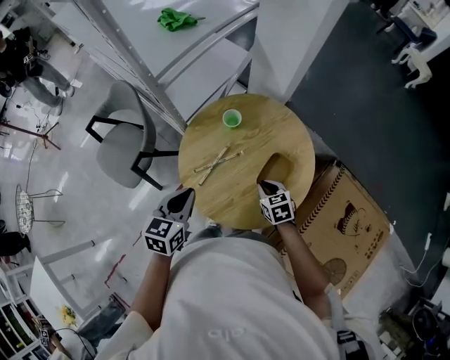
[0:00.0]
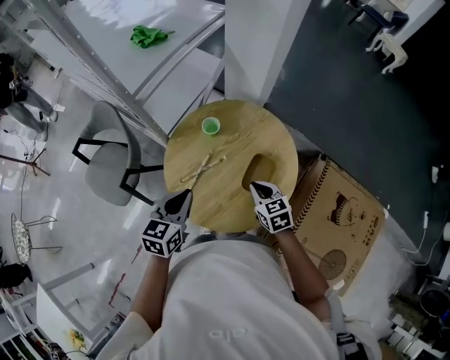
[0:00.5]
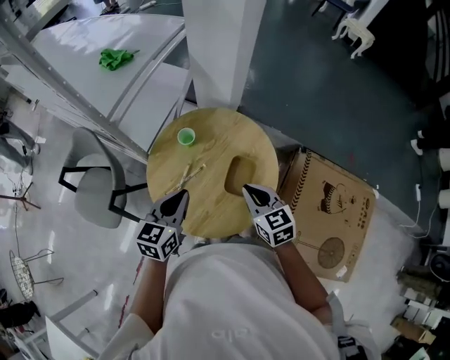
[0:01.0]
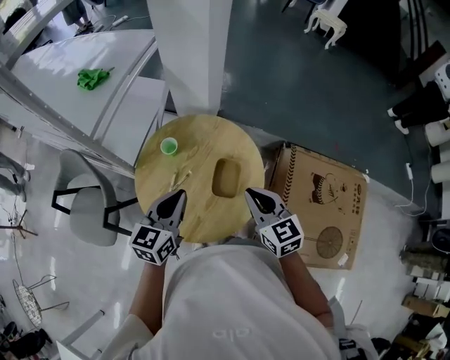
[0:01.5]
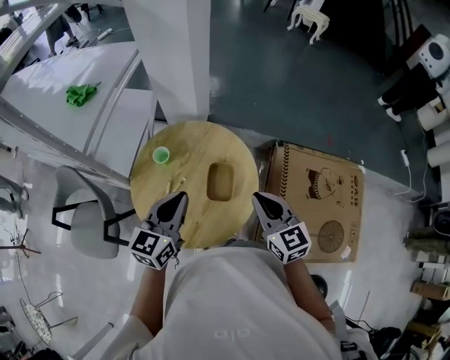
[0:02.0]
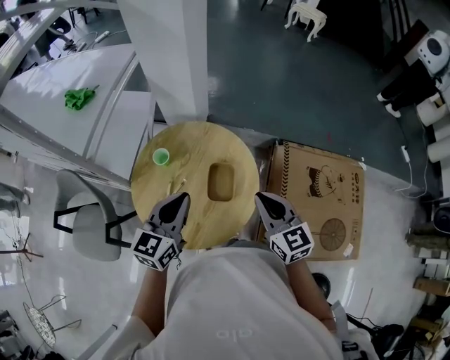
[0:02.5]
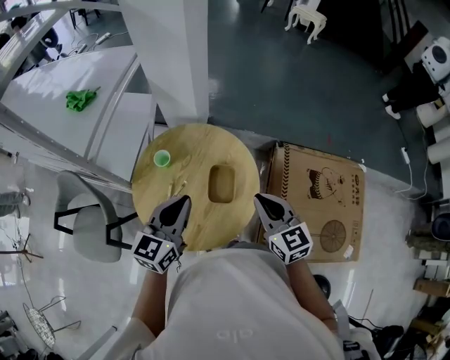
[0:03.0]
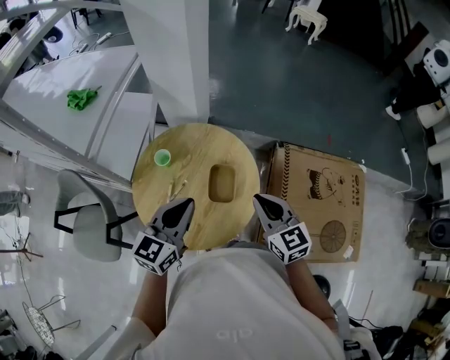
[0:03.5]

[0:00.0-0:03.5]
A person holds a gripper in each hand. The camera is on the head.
0:00.0 to 0:02.0: The left gripper changes place by roughly 20 cm, and rotates roughly 30 degrees; the right gripper travels upward by some 25 cm, and points its fingers approximately 30 degrees further upward.
0:02.0 to 0:03.5: There are only small adjustments of the grippers.

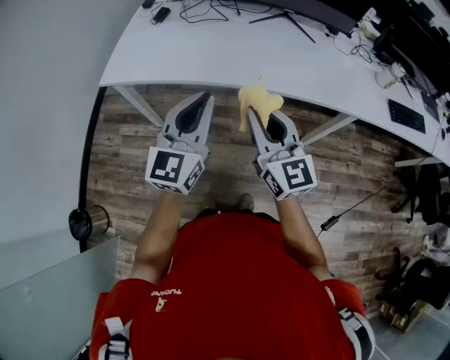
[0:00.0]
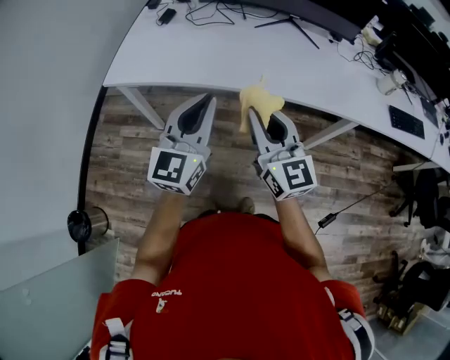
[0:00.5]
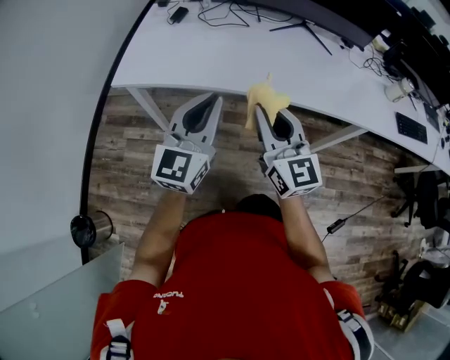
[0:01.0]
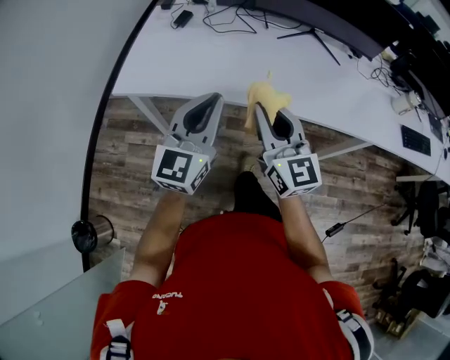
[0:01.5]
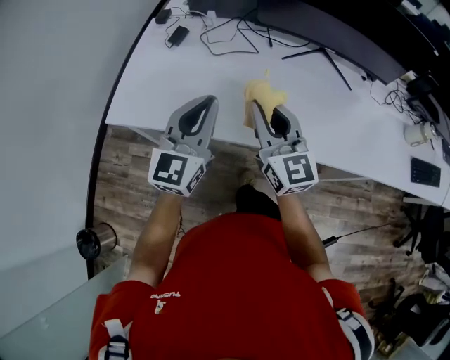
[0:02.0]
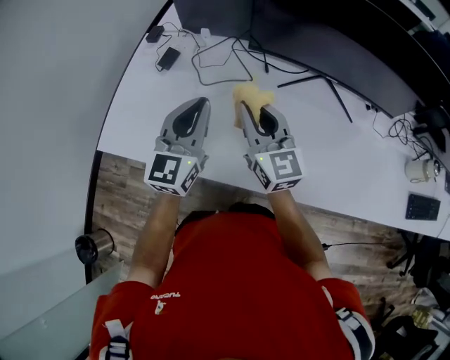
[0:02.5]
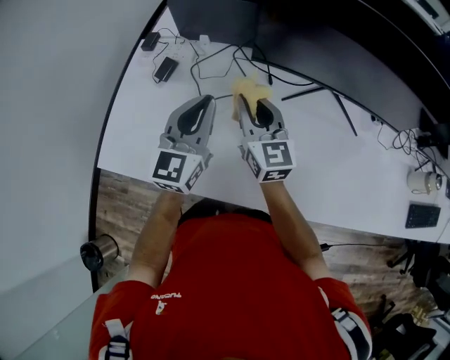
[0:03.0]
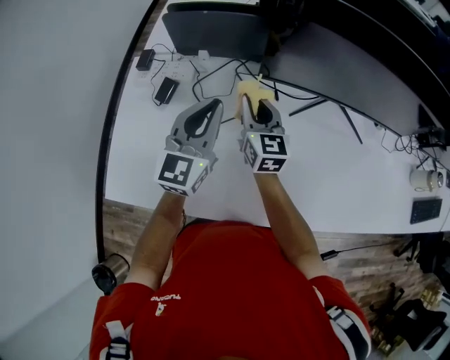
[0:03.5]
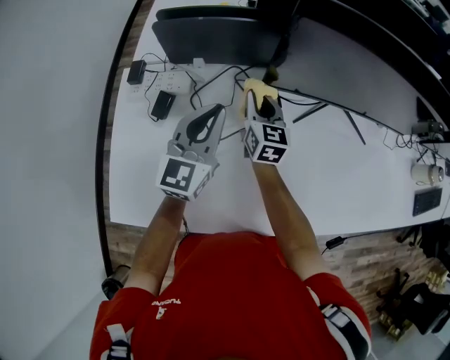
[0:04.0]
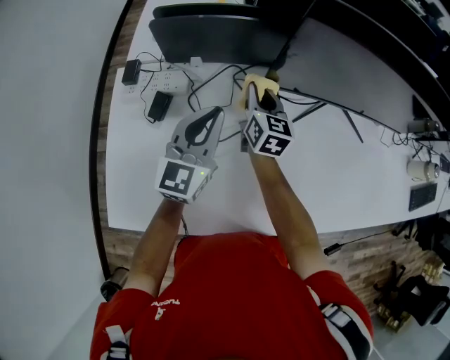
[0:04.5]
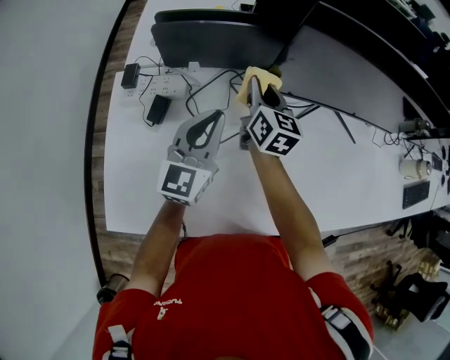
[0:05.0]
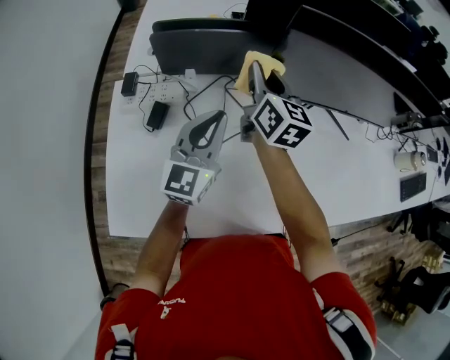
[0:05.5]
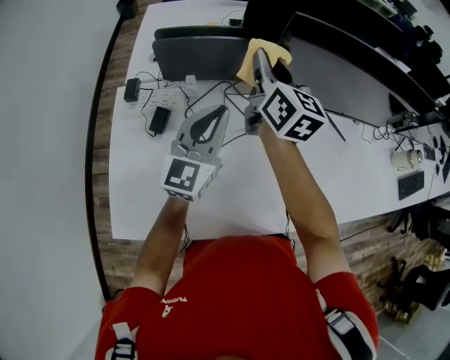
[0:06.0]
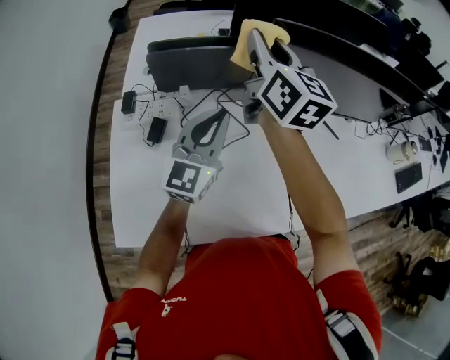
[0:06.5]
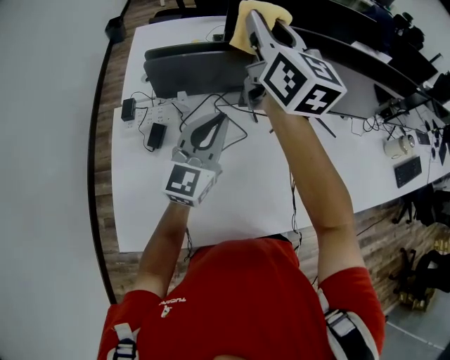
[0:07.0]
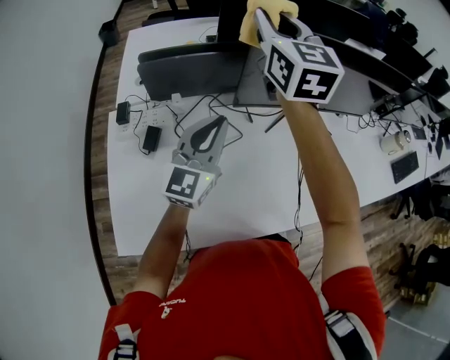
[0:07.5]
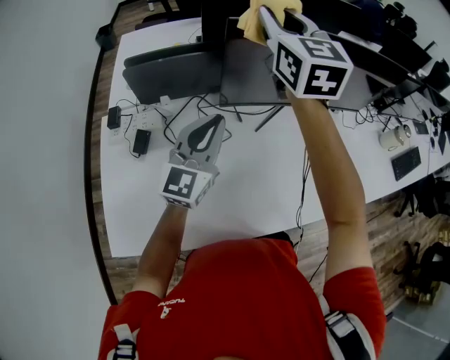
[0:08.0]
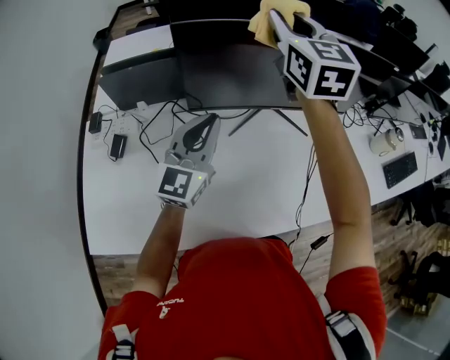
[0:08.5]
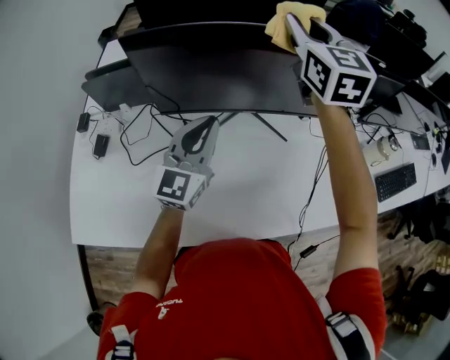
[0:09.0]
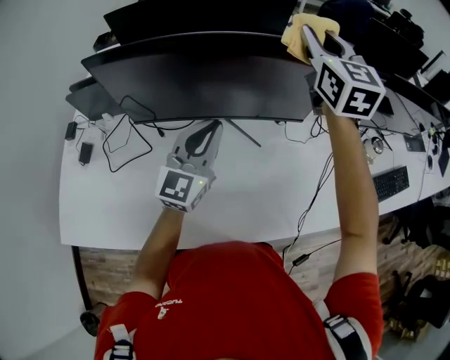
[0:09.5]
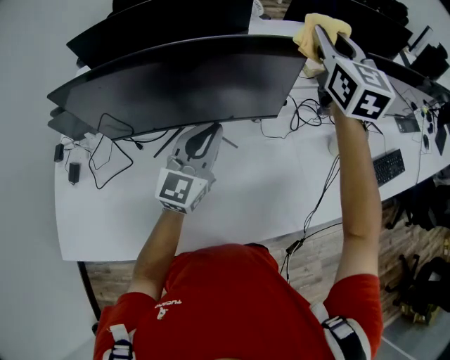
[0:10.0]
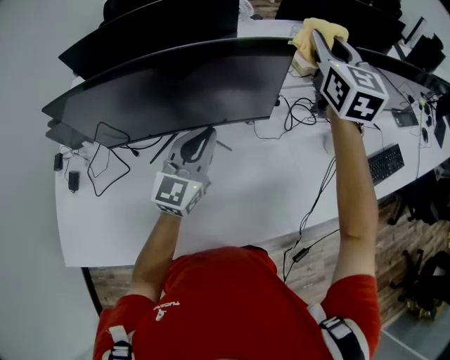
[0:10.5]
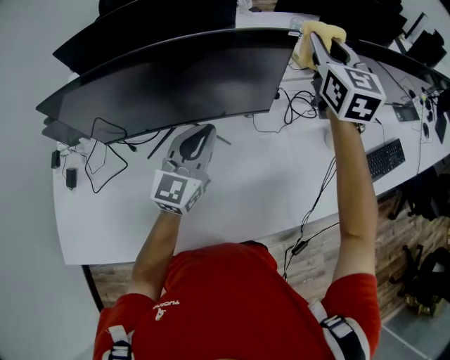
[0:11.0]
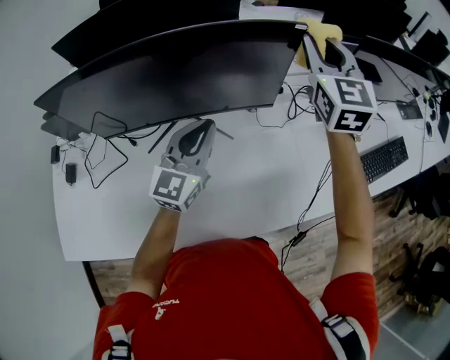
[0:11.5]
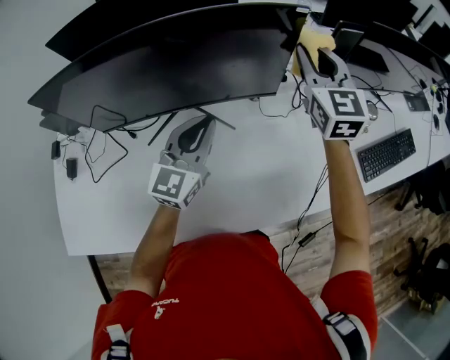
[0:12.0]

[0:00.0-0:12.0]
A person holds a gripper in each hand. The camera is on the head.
0:00.0 to 0:02.0: Both grippers travel together forward, roughly 25 cm.
0:02.0 to 0:04.0: The grippers both shift forward by about 35 cm. The right gripper changes its angle by some 30 degrees.
0:04.0 to 0:06.0: The right gripper goes about 20 cm upward. Meanwhile the left gripper is displaced upward by roughly 5 cm.
0:06.0 to 0:08.0: The right gripper moves upward and to the right, about 20 cm, and changes its angle by about 30 degrees. The left gripper moves to the right, some 10 cm.
0:08.0 to 0:10.0: The pair of grippers is taken to the right, some 50 cm.
0:10.0 to 0:12.0: The right gripper is displaced downward by approximately 15 cm.

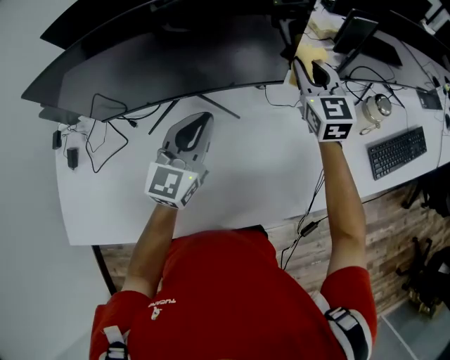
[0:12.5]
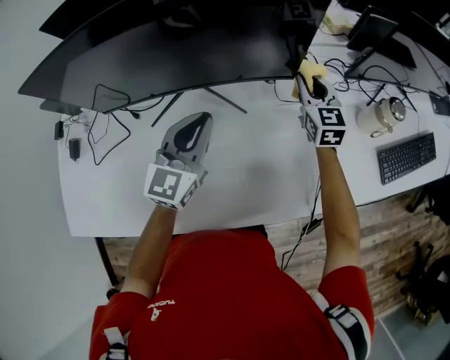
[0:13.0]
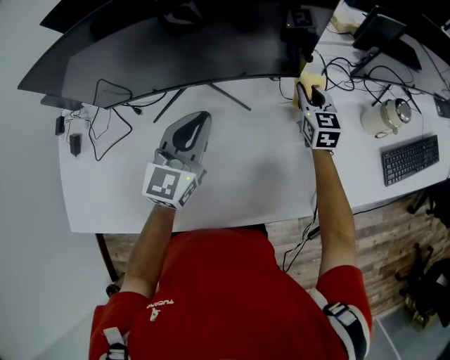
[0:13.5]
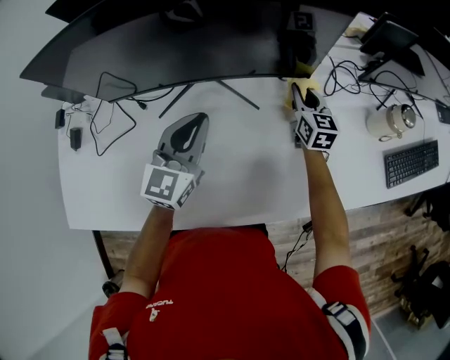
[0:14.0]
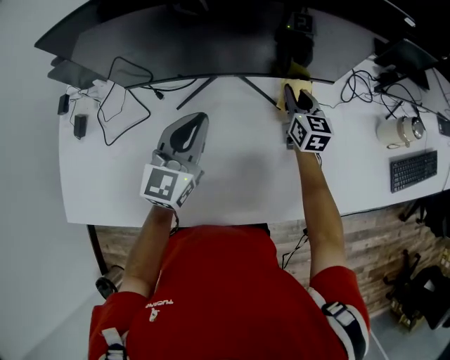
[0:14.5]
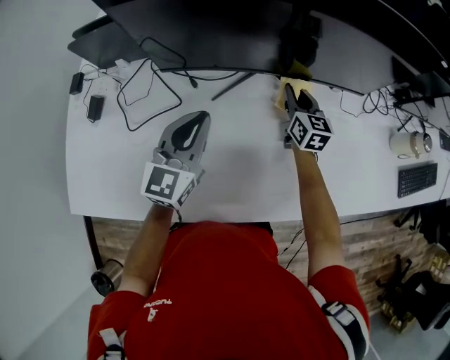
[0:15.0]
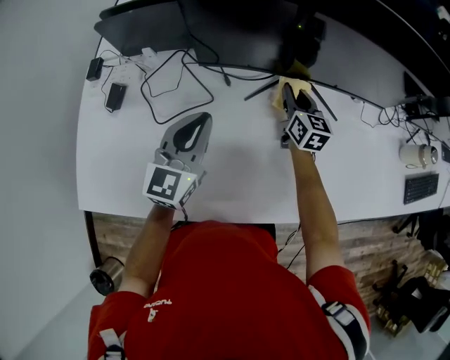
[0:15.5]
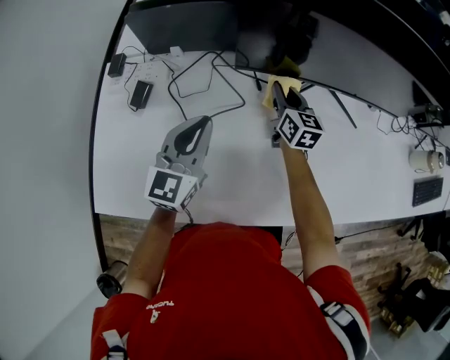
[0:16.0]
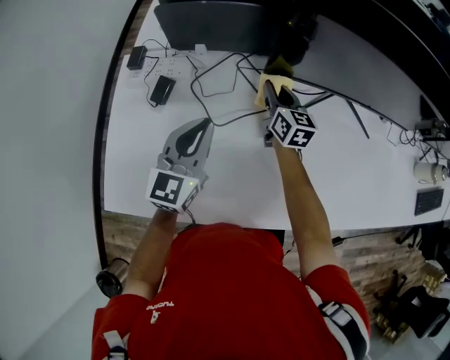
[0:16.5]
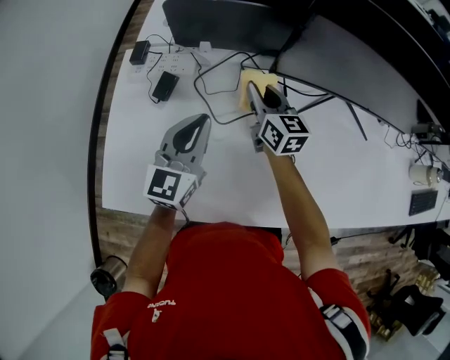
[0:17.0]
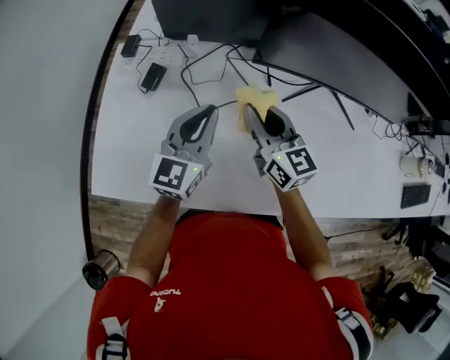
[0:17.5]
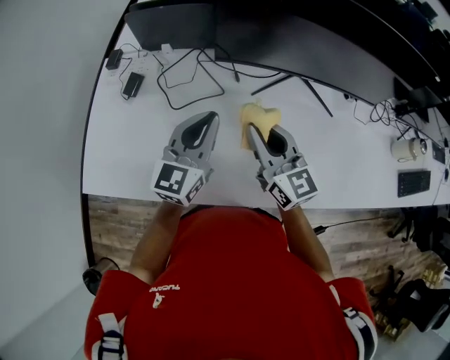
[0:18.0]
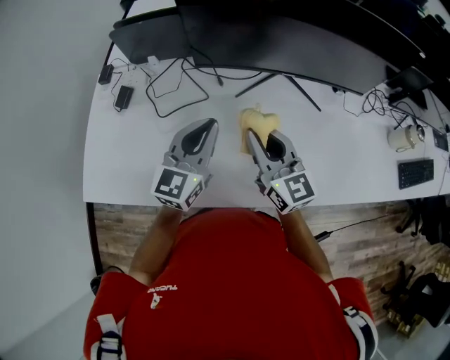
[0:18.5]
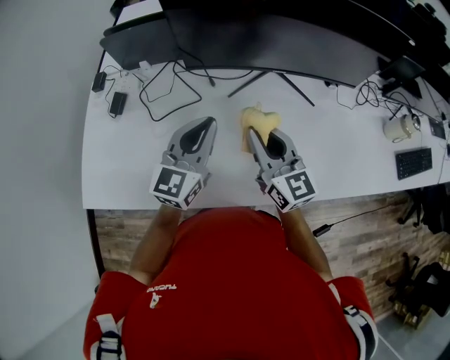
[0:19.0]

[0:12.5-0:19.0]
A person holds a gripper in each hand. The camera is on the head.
0:12.5 to 0:14.5: The left gripper is displaced to the left by roughly 15 cm, while the right gripper moves downward and to the left, about 25 cm, and rotates approximately 20 degrees.
0:14.5 to 0:17.0: The two grippers travel together, to the left, approximately 50 cm. The right gripper rotates roughly 20 degrees.
0:17.0 to 0:19.0: The left gripper is displaced to the right by approximately 25 cm; the right gripper moves to the right, backward and upward, about 35 cm.

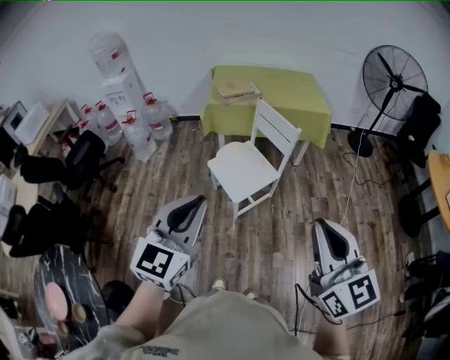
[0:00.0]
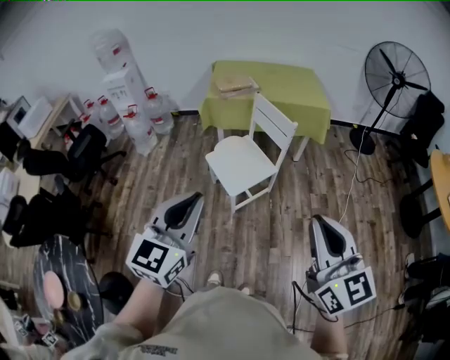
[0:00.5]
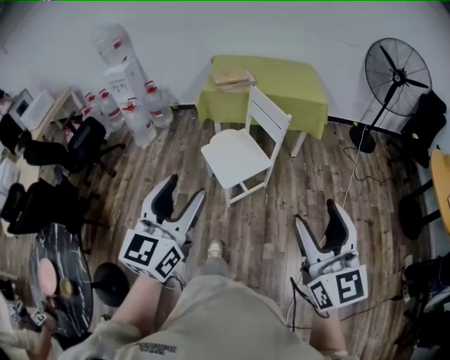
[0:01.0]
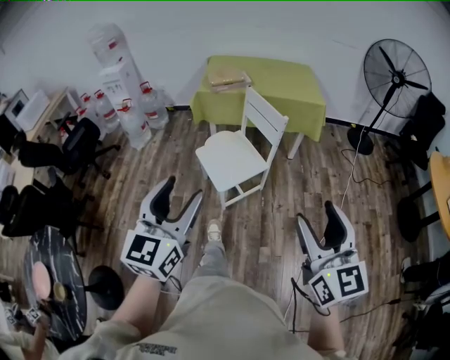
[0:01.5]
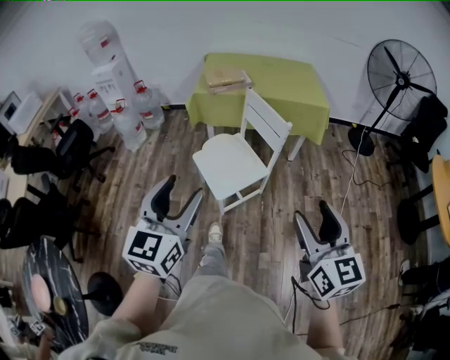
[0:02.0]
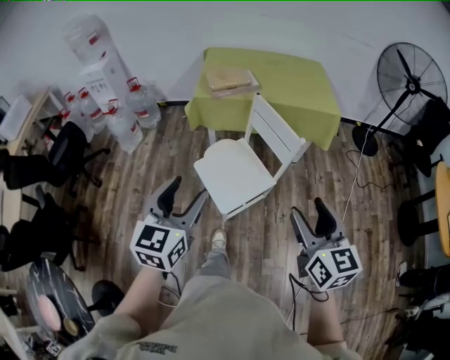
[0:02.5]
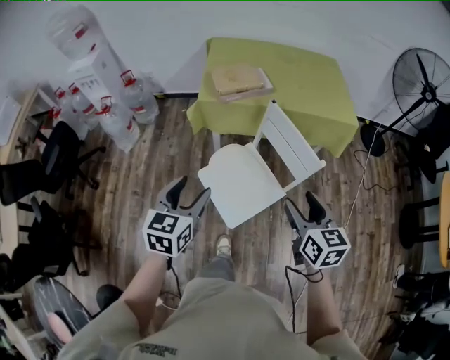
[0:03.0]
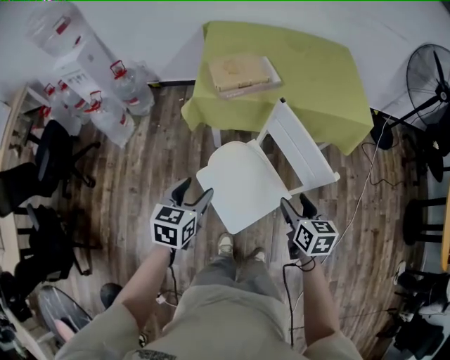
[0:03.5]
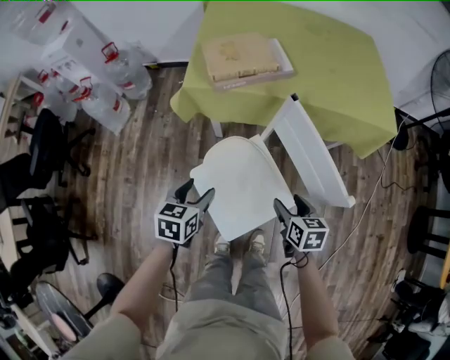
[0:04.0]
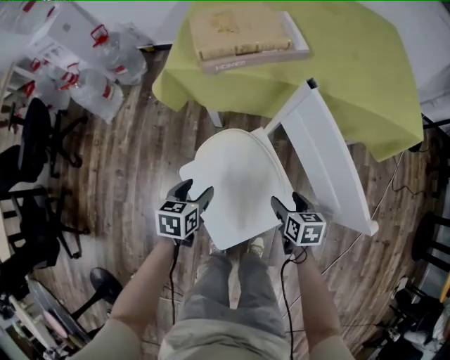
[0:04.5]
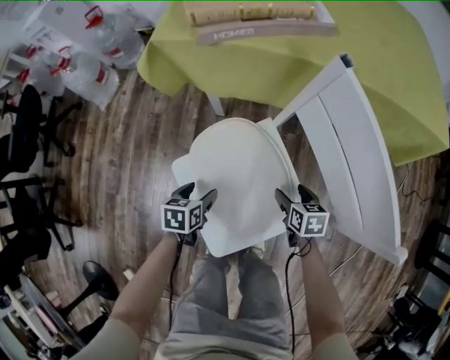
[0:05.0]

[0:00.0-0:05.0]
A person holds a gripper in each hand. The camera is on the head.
0:00.0 to 0:02.5: The right gripper goes approximately 30 cm forward and downward, and opens up. Meanwhile the left gripper goes some 25 cm forward, and opens up.
0:02.5 to 0:05.0: Both grippers move downward and forward, roughly 80 cm. The left gripper angles its fingers downward, by some 40 degrees, while the right gripper tips its fingers downward by approximately 40 degrees.
